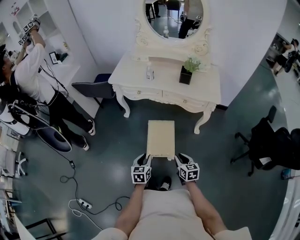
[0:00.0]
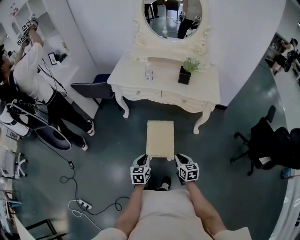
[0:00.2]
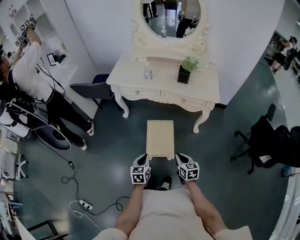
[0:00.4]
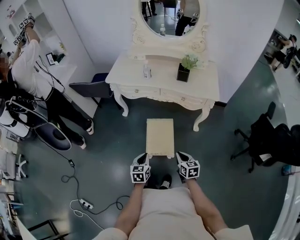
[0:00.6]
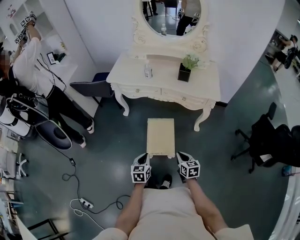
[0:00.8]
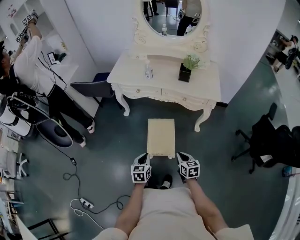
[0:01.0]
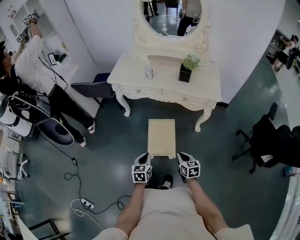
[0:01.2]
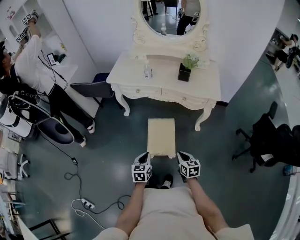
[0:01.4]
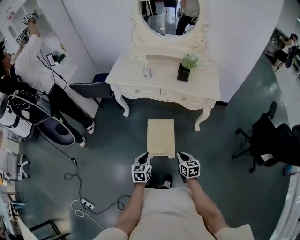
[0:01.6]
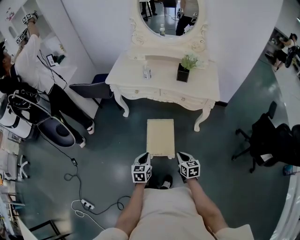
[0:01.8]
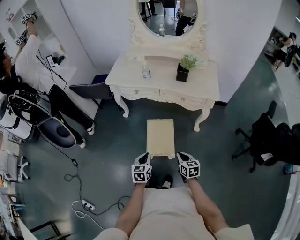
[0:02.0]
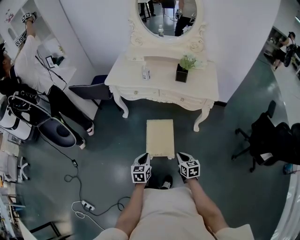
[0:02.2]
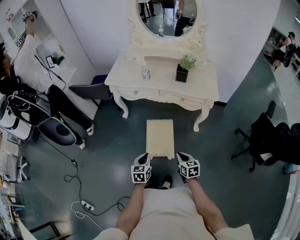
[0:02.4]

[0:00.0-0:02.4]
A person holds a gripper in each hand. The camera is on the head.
0:00.0 to 0:01.2: Both grippers stay about where they are.
0:01.2 to 0:02.4: Both grippers stay put.

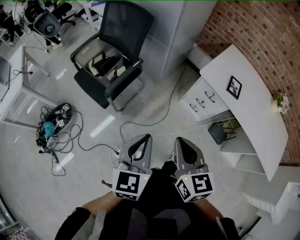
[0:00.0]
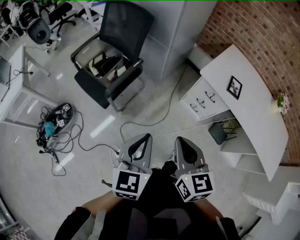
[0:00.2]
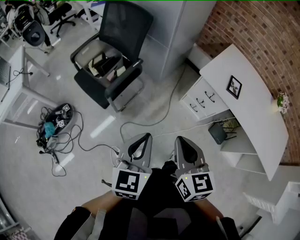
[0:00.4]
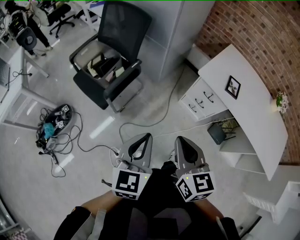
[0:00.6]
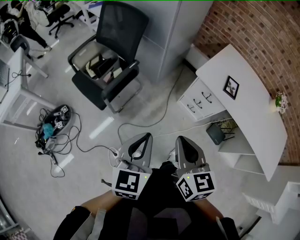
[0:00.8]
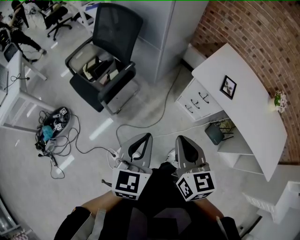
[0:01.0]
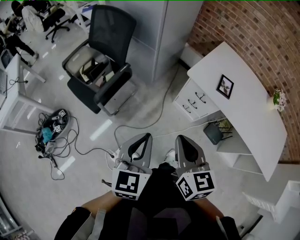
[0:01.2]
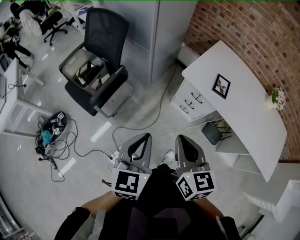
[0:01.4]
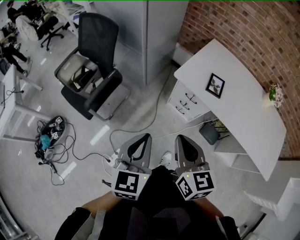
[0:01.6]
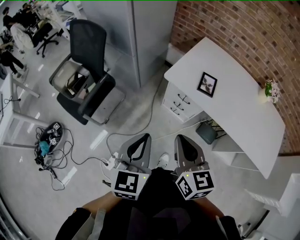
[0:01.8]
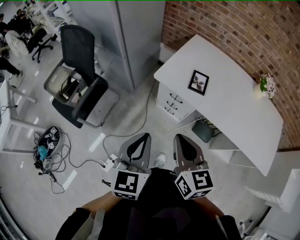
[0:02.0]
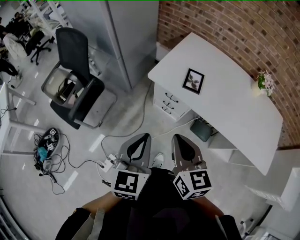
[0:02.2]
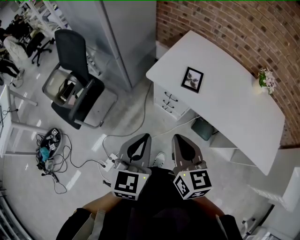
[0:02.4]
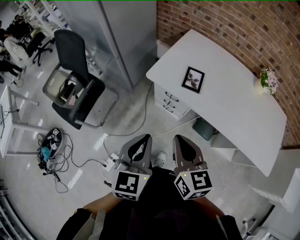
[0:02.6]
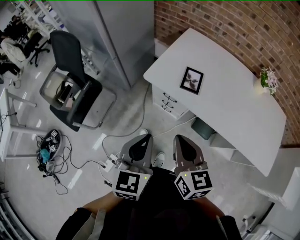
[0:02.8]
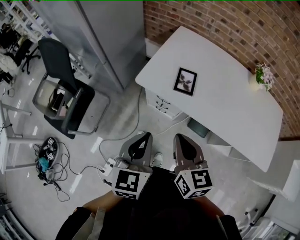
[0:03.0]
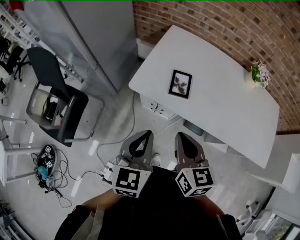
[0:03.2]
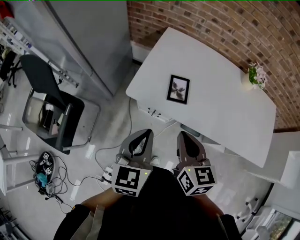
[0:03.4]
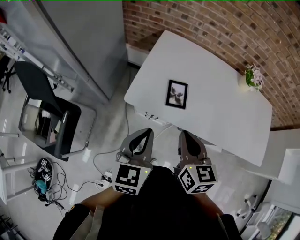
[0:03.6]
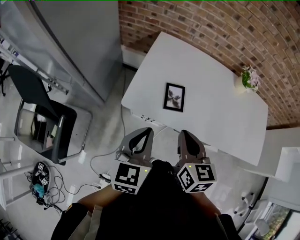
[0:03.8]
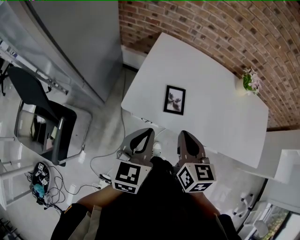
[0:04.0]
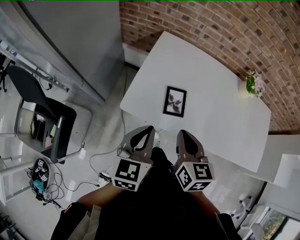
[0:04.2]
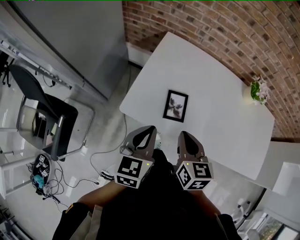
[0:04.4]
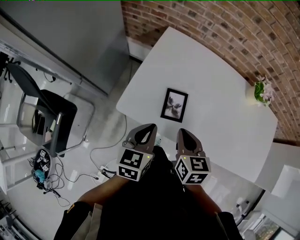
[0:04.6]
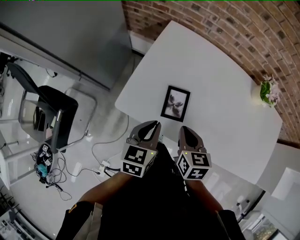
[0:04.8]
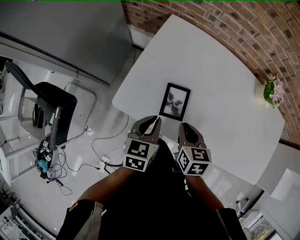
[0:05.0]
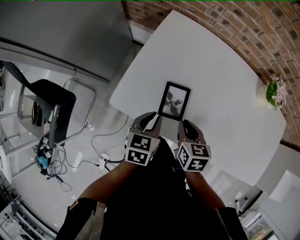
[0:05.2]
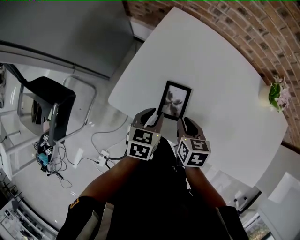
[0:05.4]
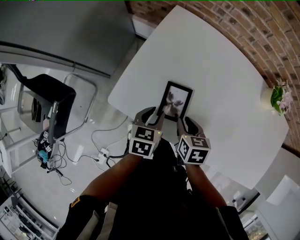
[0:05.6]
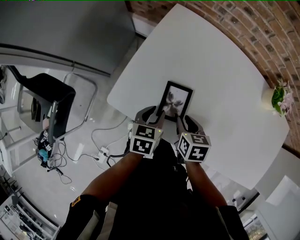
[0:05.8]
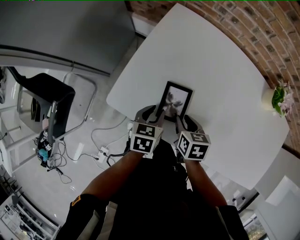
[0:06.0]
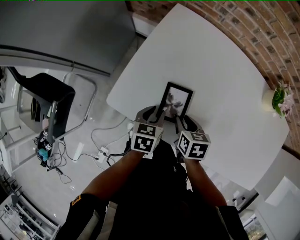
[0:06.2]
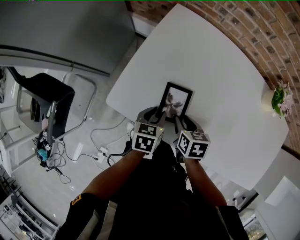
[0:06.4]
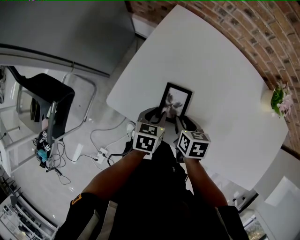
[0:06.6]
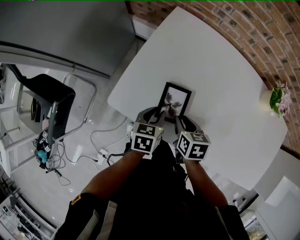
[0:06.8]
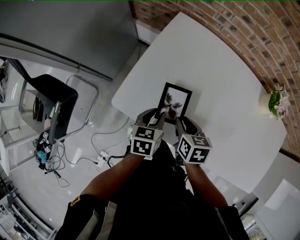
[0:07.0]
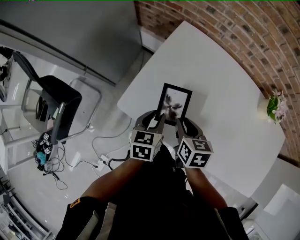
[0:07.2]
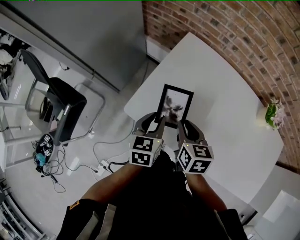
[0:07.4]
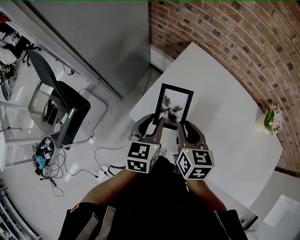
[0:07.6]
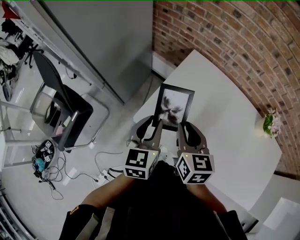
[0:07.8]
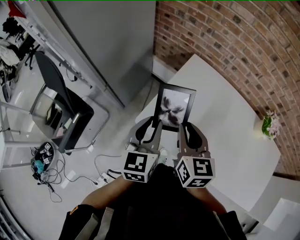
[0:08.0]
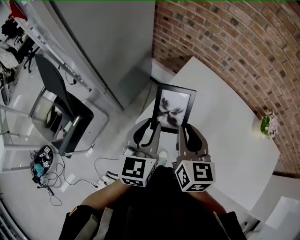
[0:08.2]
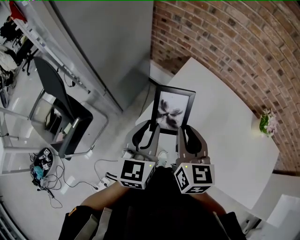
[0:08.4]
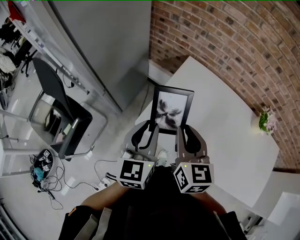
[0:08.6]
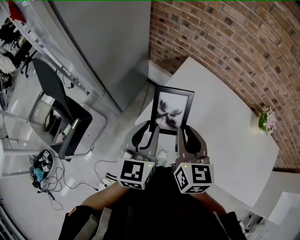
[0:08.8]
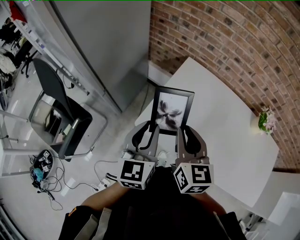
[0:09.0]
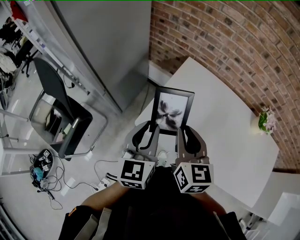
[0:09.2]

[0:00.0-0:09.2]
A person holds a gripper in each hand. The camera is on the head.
0:00.0 to 0:01.6: The grippers both shift to the right by about 15 cm.
0:01.6 to 0:03.0: Both grippers travel together to the right and forward, approximately 20 cm.
0:03.0 to 0:04.6: Both grippers move forward and downward, approximately 25 cm.
0:04.6 to 0:06.2: The left gripper heads downward and forward, covering some 20 cm, turns by approximately 20 degrees, and opens, while the right gripper shifts about 15 cm downward, turns by about 20 degrees, and opens its fingers.
0:06.2 to 0:07.6: The grippers both shift upward and to the left by approximately 20 cm. The left gripper turns by some 30 degrees. Meanwhile the right gripper rotates some 30 degrees.
0:07.6 to 0:09.2: The right gripper is displaced upward by some 10 cm. Meanwhile the left gripper is displaced upward and to the left by about 10 cm.

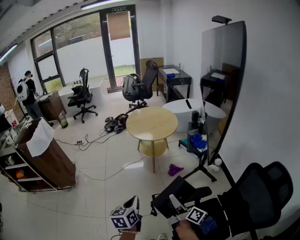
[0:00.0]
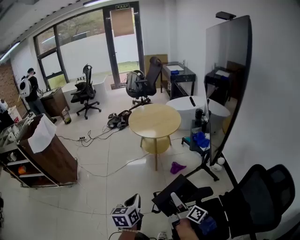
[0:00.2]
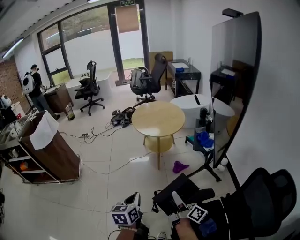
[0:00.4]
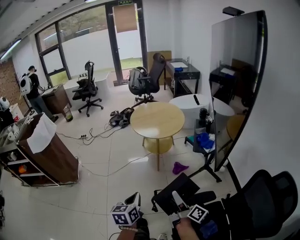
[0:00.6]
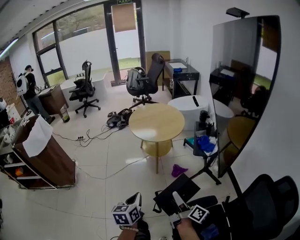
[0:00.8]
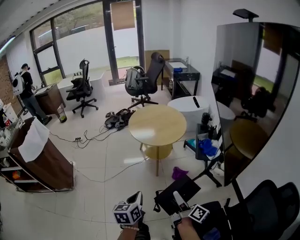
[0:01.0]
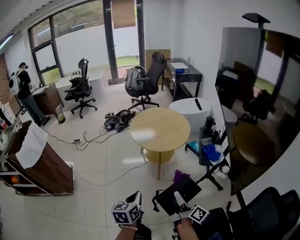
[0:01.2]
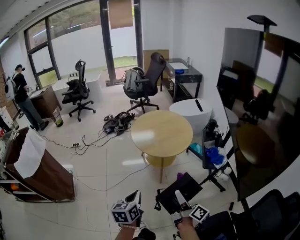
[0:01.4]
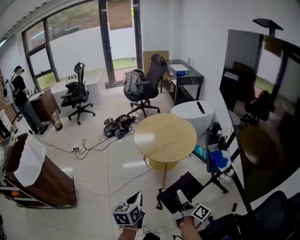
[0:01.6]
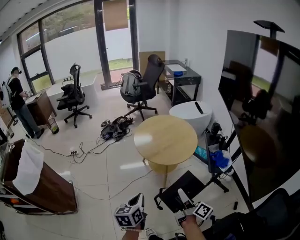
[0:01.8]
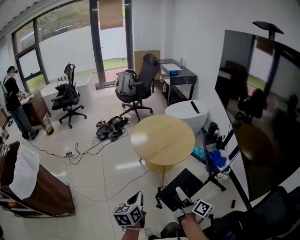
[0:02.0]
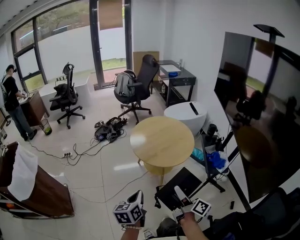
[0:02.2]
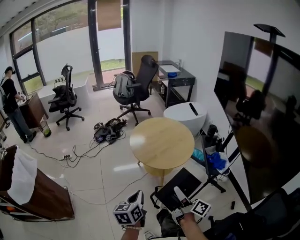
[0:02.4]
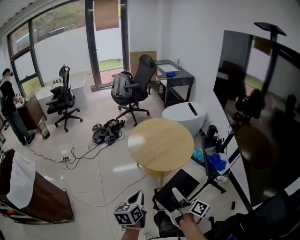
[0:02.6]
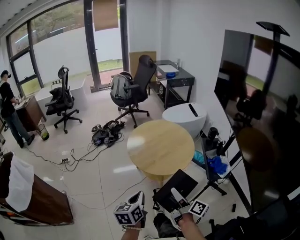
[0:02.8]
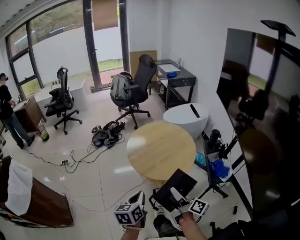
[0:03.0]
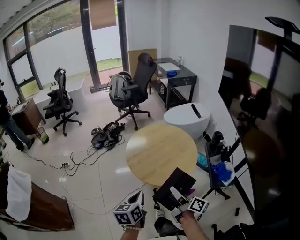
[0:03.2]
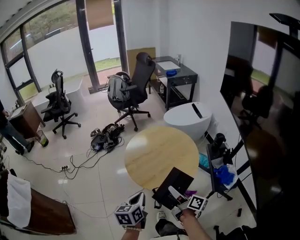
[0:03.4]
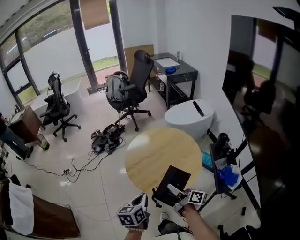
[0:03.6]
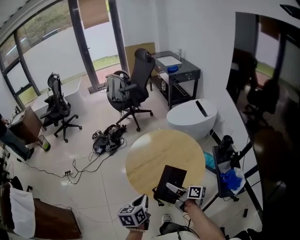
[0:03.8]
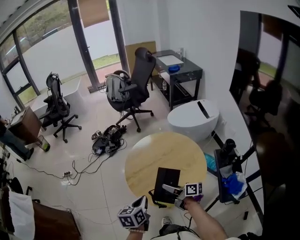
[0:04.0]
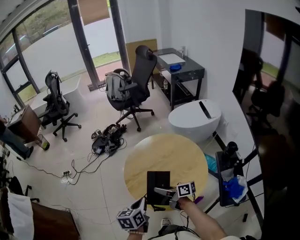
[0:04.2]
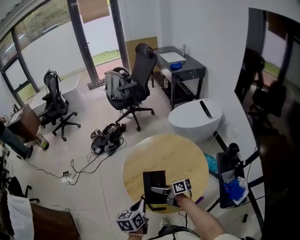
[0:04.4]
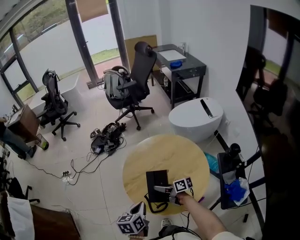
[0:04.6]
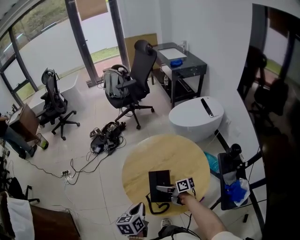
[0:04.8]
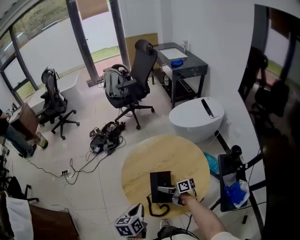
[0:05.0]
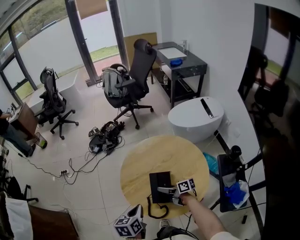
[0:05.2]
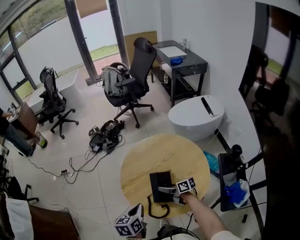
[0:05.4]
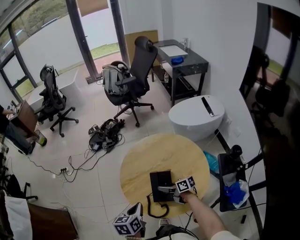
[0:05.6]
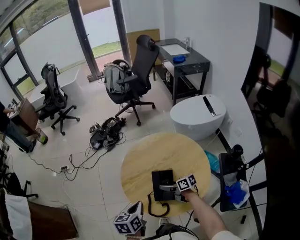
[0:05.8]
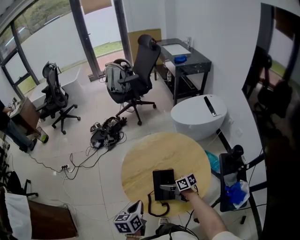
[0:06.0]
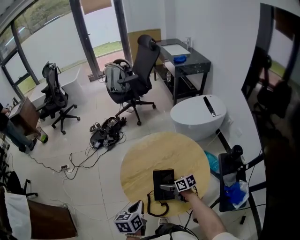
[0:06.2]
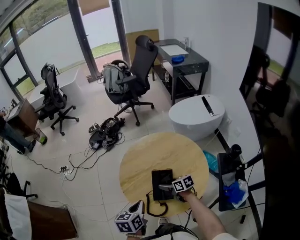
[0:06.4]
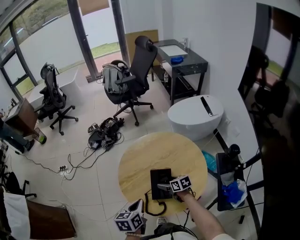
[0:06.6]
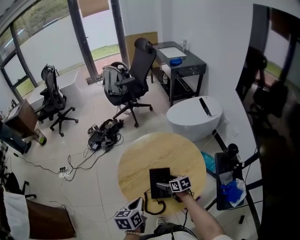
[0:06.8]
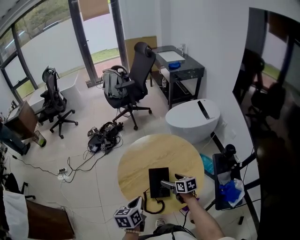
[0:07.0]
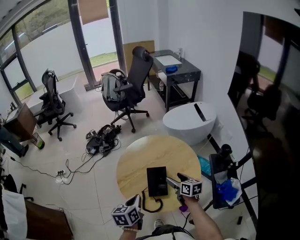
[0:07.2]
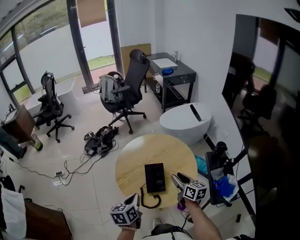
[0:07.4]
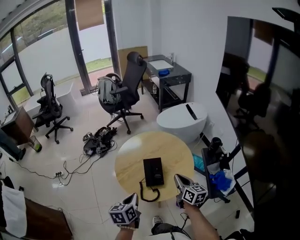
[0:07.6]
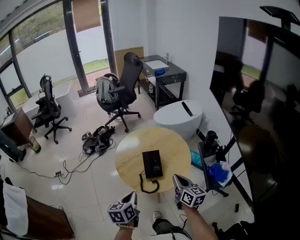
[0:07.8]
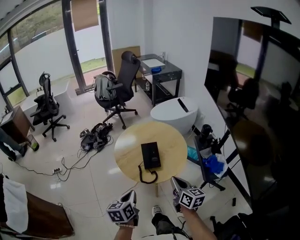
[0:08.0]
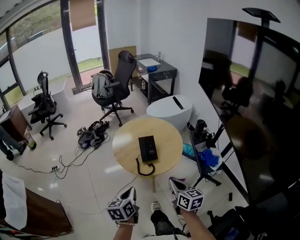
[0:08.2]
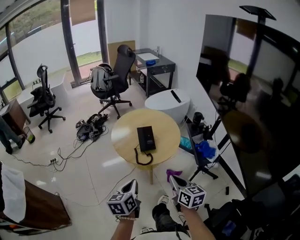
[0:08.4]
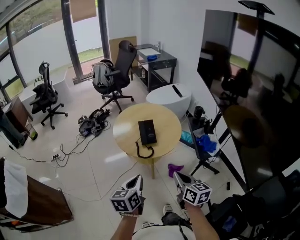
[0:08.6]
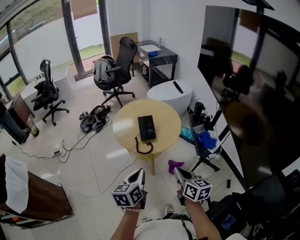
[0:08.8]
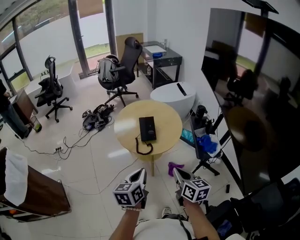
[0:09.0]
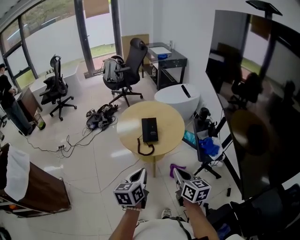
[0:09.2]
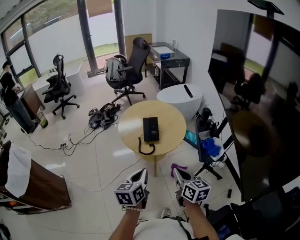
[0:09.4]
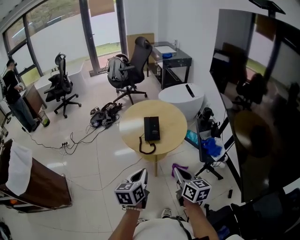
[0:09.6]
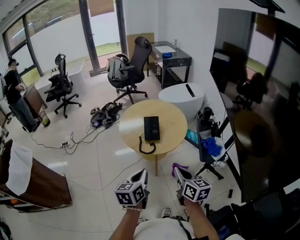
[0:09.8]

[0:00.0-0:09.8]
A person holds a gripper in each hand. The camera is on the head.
0:00.0 to 0:01.4: The two grippers go about 25 cm forward.
0:01.4 to 0:02.8: The left gripper travels forward by some 15 cm, while the right gripper heads forward and to the left, covering approximately 15 cm.
0:02.8 to 0:04.2: The left gripper goes some 25 cm forward, while the right gripper heads forward and downward, covering roughly 35 cm, and turns by approximately 40 degrees.
0:04.2 to 0:05.6: The right gripper travels downward and to the right by roughly 15 cm.
0:05.6 to 0:07.0: The right gripper shifts some 10 cm to the right, changes its angle by some 40 degrees, and opens its fingers.
0:07.0 to 0:08.4: The left gripper travels backward by approximately 25 cm; the right gripper moves backward and upward, roughly 40 cm, changes its angle by about 30 degrees, and closes its fingers.
0:08.4 to 0:09.8: The left gripper travels to the right by some 10 cm. The right gripper changes place by some 5 cm.

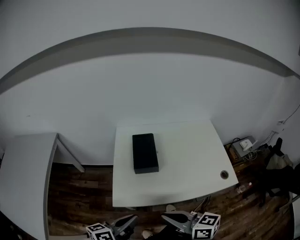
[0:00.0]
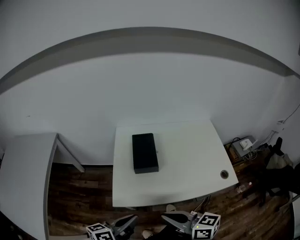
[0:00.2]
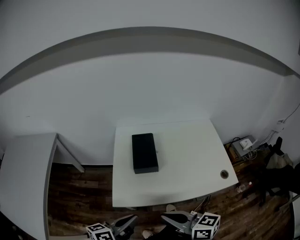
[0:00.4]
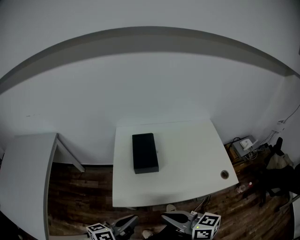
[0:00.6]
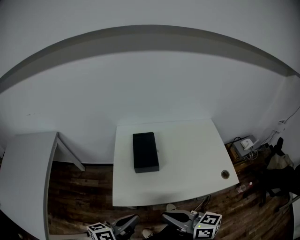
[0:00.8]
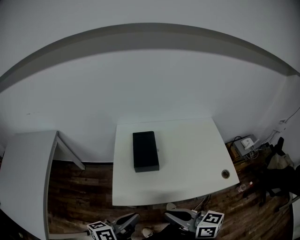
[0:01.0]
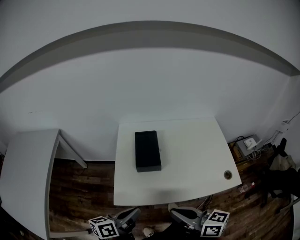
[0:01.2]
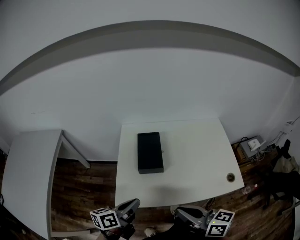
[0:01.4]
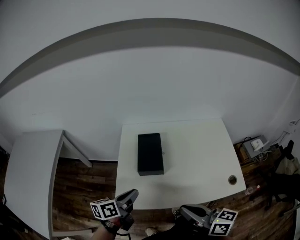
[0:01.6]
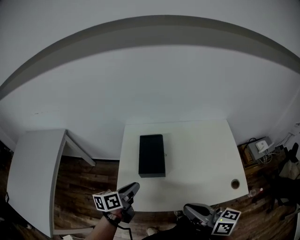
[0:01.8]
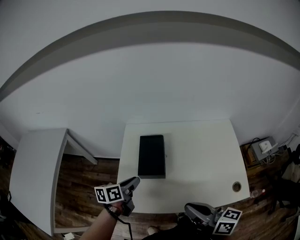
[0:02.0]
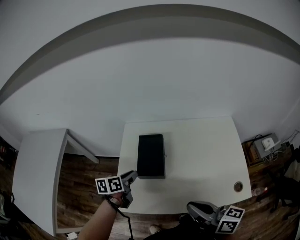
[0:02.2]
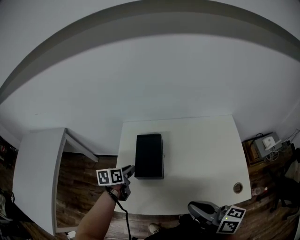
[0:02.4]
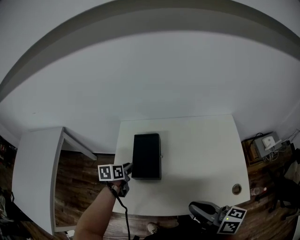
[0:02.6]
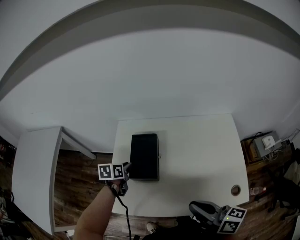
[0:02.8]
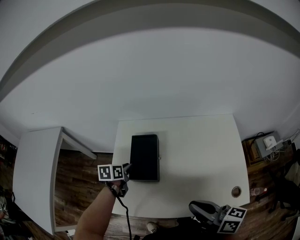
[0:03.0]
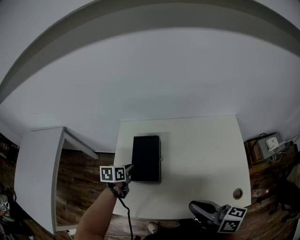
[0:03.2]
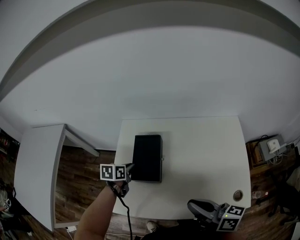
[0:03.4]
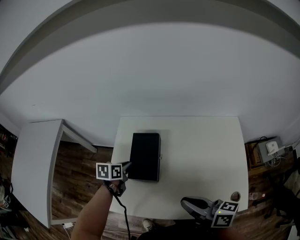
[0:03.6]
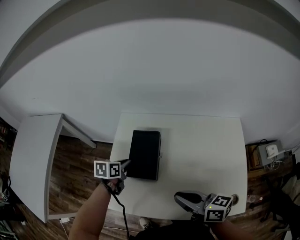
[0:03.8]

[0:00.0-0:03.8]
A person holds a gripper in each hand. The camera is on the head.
0:00.0 to 0:01.2: There are only small adjustments of the grippers.
0:01.2 to 0:02.6: The left gripper travels forward and downward by roughly 30 cm, and tips its fingers downward by some 30 degrees, while the right gripper shifts roughly 15 cm to the right and forward.
0:02.6 to 0:03.8: The right gripper travels forward and downward by approximately 10 cm.
